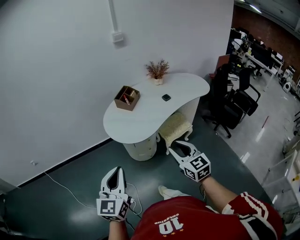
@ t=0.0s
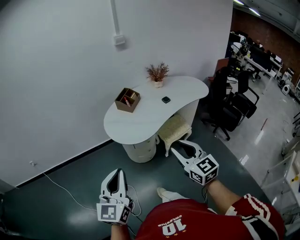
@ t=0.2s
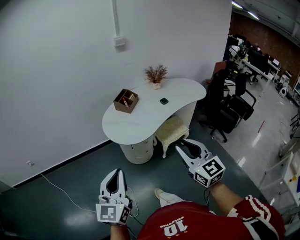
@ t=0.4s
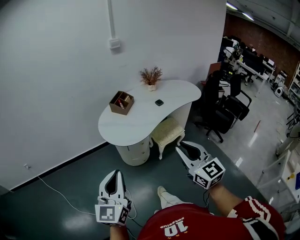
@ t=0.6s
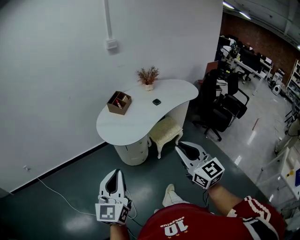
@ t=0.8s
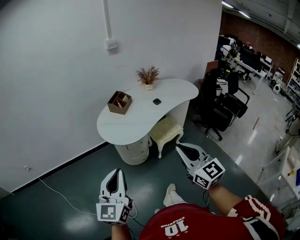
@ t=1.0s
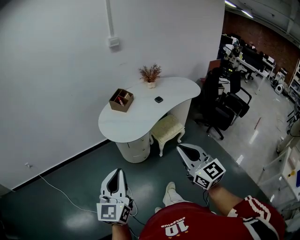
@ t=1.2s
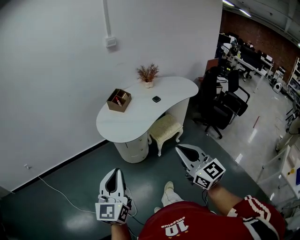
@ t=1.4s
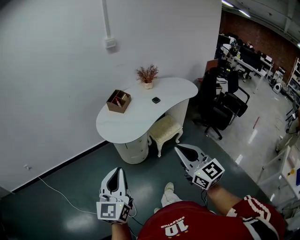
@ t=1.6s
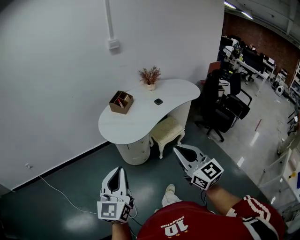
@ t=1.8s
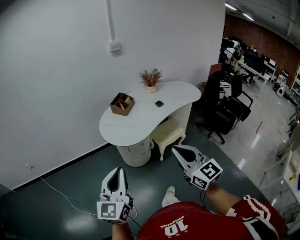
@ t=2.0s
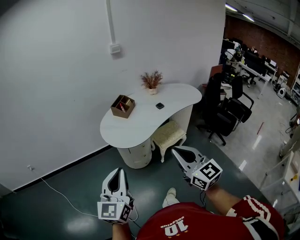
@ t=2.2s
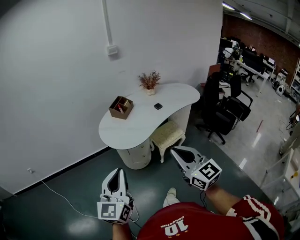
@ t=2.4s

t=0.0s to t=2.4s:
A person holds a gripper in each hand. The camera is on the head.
t=0.0s to t=1.2s: The right gripper goes approximately 15 cm backward and upward; the left gripper goes roughly 5 cm backward.
t=1.2s to t=2.4s: The grippers move only a little.

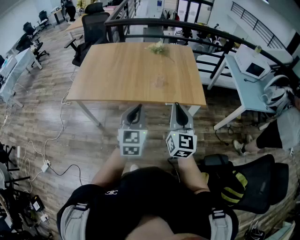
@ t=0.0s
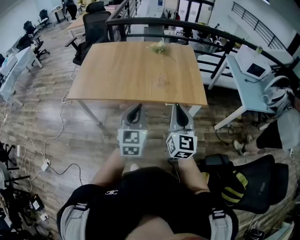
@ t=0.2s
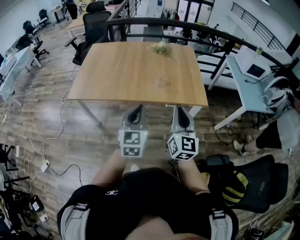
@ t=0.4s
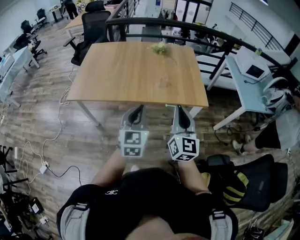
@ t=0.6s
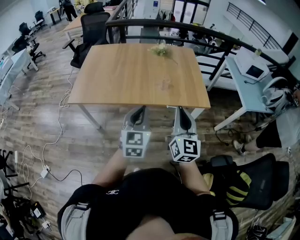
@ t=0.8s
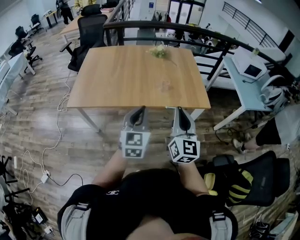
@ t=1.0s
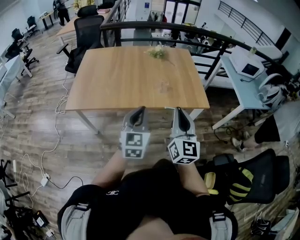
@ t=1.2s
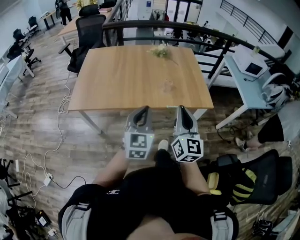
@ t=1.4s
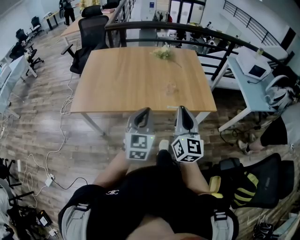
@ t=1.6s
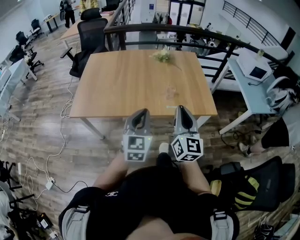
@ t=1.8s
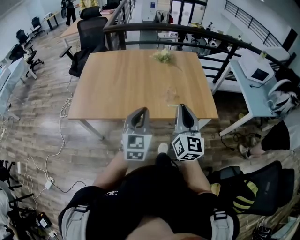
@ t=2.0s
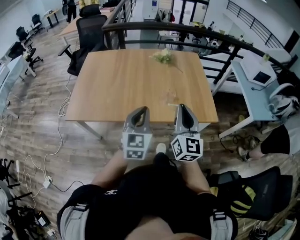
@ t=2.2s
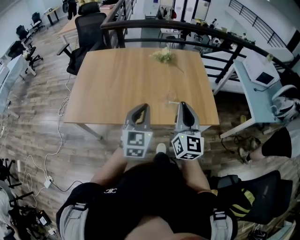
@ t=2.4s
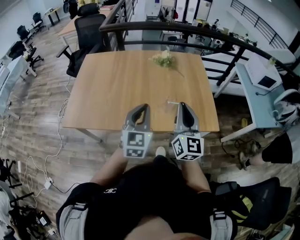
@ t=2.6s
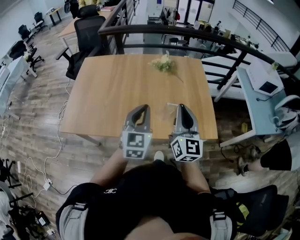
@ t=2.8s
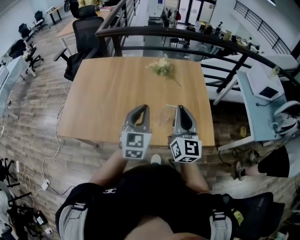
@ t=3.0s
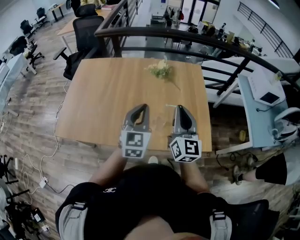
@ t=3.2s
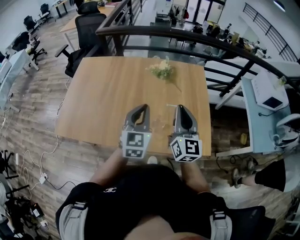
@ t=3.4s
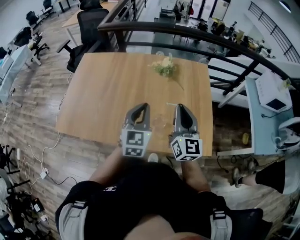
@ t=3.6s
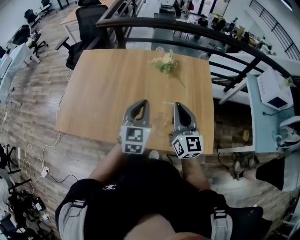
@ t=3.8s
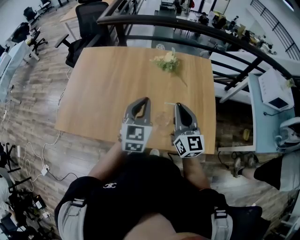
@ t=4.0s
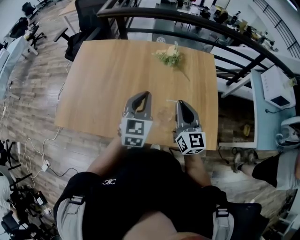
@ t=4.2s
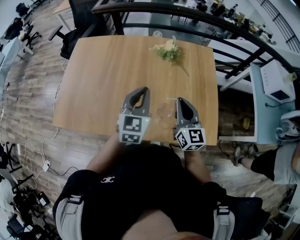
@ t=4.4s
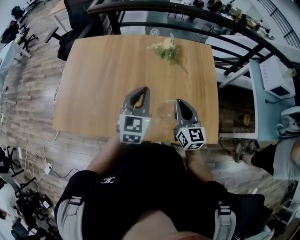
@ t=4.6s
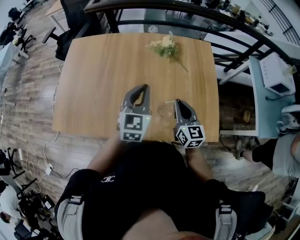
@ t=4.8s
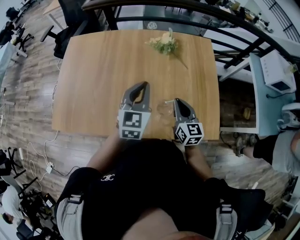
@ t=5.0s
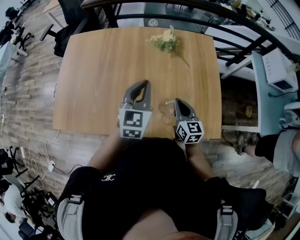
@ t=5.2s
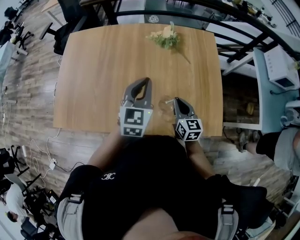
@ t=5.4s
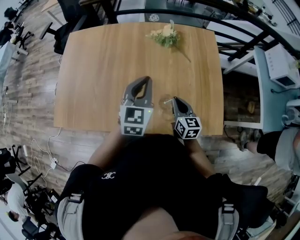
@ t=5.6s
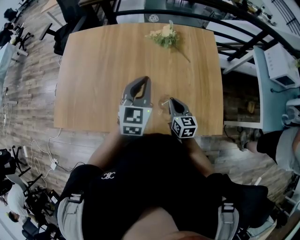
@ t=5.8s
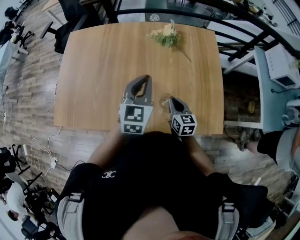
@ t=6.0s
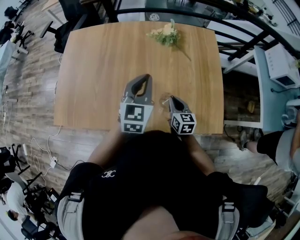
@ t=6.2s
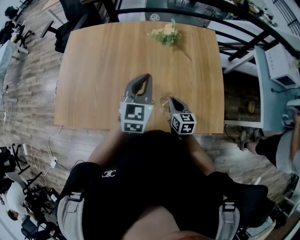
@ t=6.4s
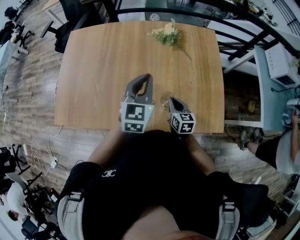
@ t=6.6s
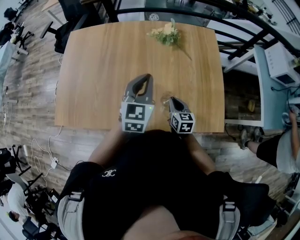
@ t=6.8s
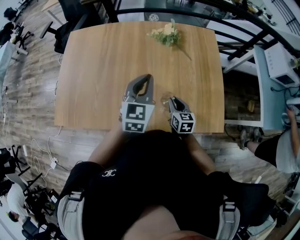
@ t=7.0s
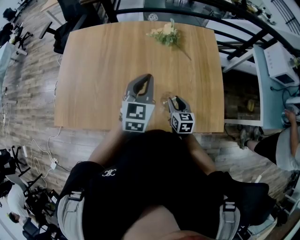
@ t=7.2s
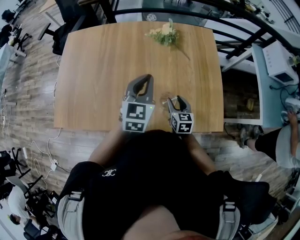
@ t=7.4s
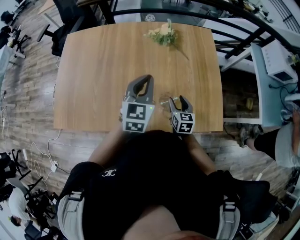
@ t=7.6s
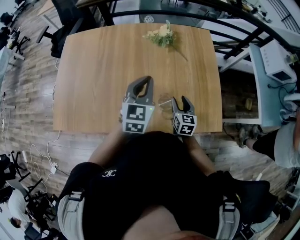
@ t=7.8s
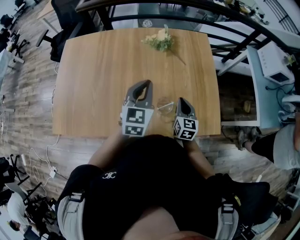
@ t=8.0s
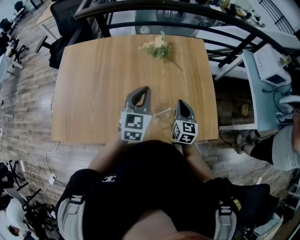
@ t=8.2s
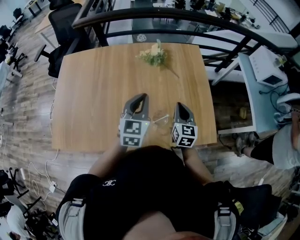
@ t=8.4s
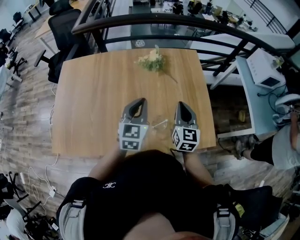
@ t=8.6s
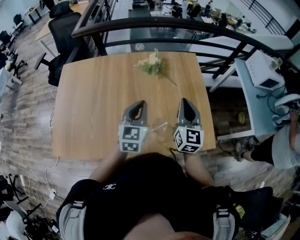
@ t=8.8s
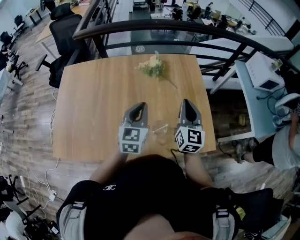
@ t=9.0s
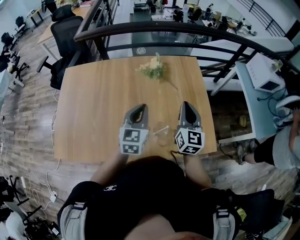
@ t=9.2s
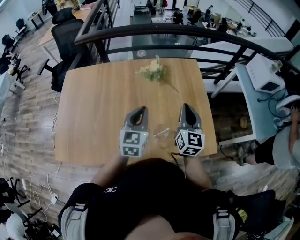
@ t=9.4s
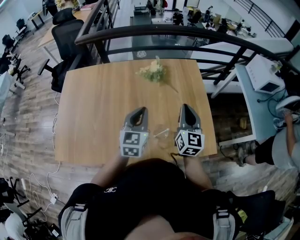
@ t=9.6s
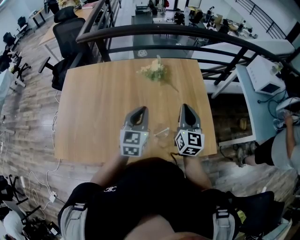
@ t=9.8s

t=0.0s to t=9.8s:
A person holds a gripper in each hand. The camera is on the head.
t=0.0s to t=1.4s: Both grippers travel together to the left, some 10 cm.
t=1.4s to t=2.8s: The two grippers go roughly 25 cm forward.
t=2.8s to t=4.2s: The right gripper heads forward and downward, covering approximately 15 cm. The left gripper goes approximately 15 cm forward.
t=4.2s to t=5.6s: The left gripper moves approximately 5 cm. The right gripper moves downward, about 15 cm, and rotates some 30 degrees.
t=5.6s to t=7.0s: The right gripper heads downward, covering approximately 5 cm.
t=7.0s to t=8.4s: The right gripper travels upward and to the right by some 15 cm, swivels about 20 degrees, and opens, then closes again.
t=8.4s to t=9.8s: The right gripper is displaced upward by approximately 10 cm.

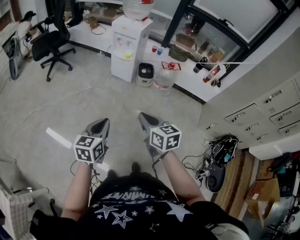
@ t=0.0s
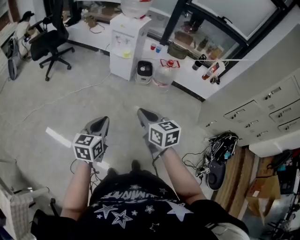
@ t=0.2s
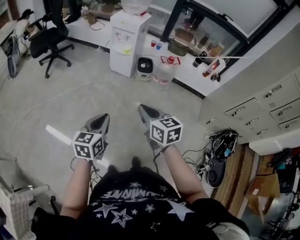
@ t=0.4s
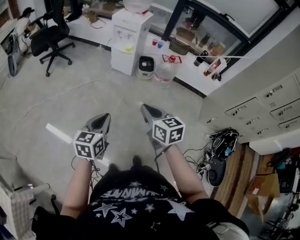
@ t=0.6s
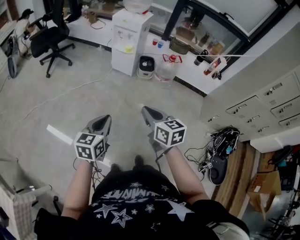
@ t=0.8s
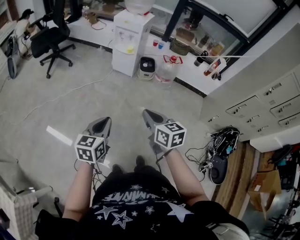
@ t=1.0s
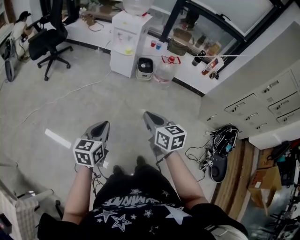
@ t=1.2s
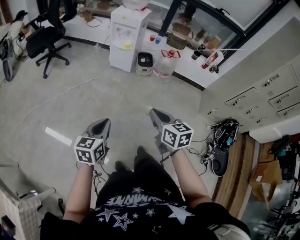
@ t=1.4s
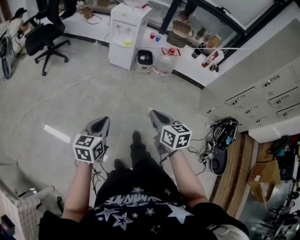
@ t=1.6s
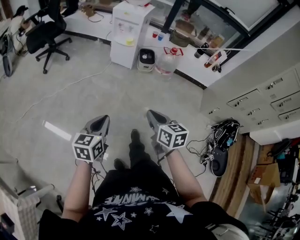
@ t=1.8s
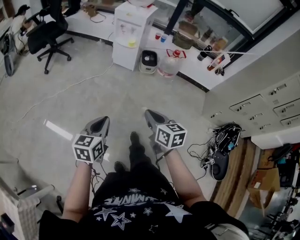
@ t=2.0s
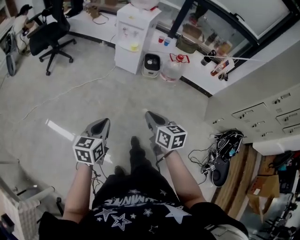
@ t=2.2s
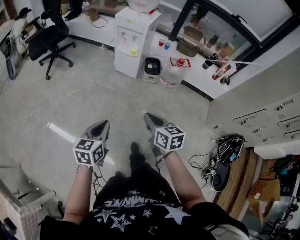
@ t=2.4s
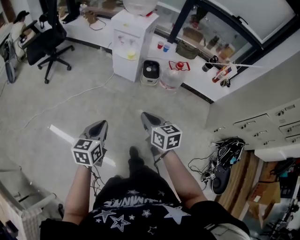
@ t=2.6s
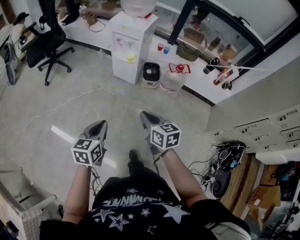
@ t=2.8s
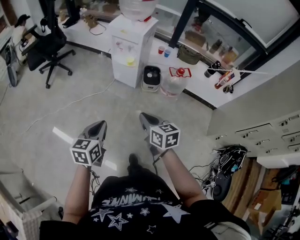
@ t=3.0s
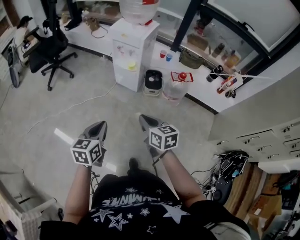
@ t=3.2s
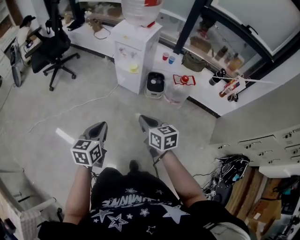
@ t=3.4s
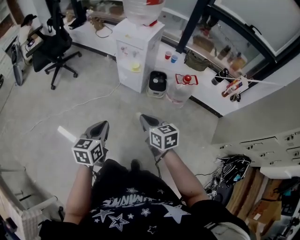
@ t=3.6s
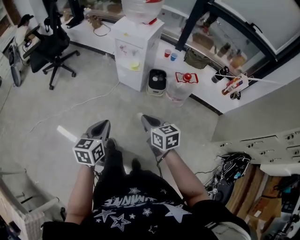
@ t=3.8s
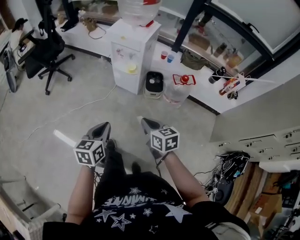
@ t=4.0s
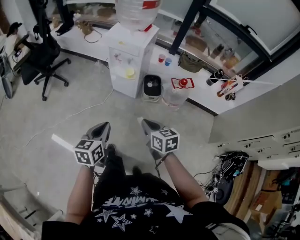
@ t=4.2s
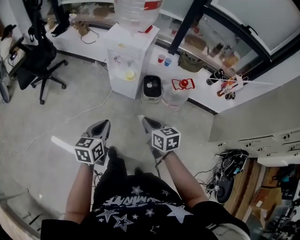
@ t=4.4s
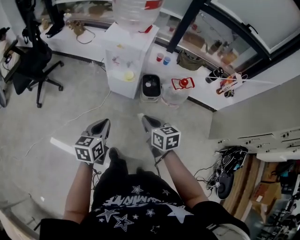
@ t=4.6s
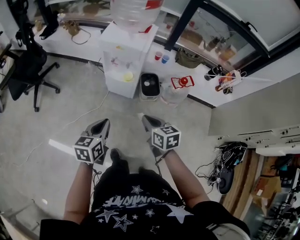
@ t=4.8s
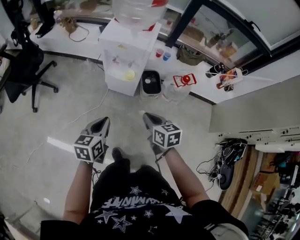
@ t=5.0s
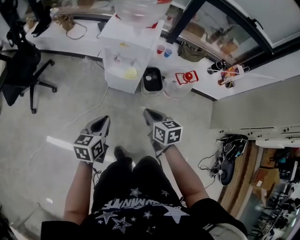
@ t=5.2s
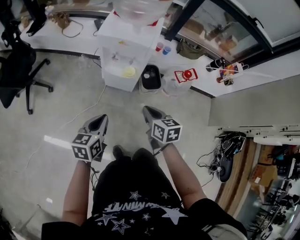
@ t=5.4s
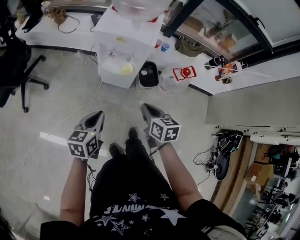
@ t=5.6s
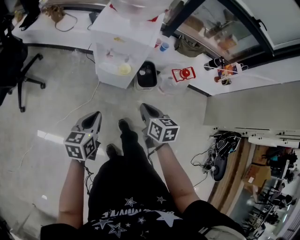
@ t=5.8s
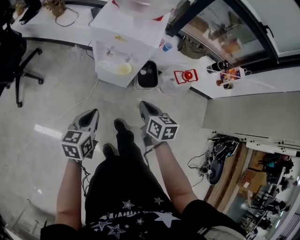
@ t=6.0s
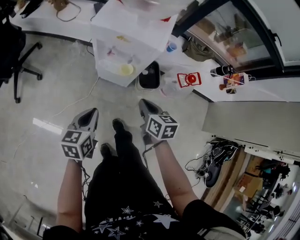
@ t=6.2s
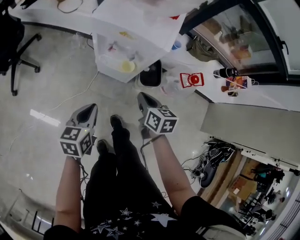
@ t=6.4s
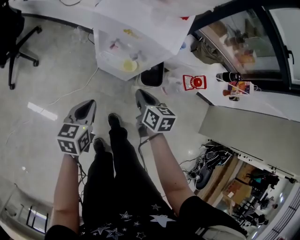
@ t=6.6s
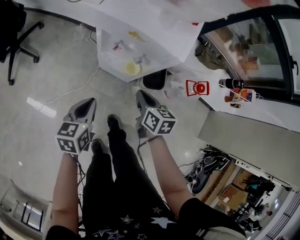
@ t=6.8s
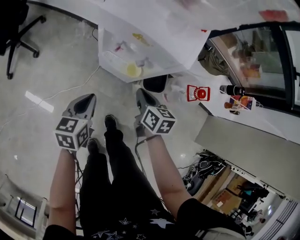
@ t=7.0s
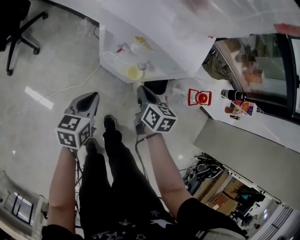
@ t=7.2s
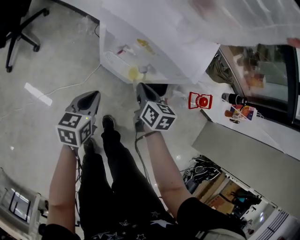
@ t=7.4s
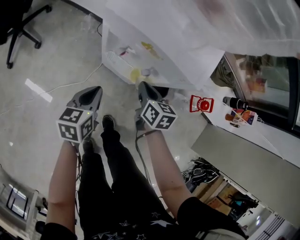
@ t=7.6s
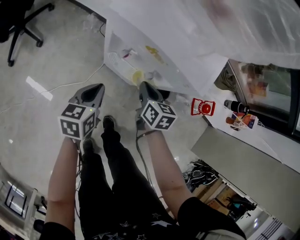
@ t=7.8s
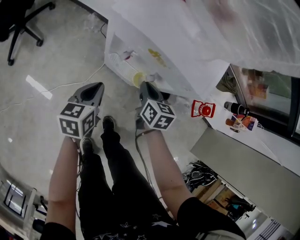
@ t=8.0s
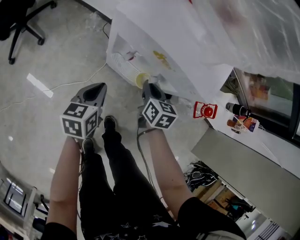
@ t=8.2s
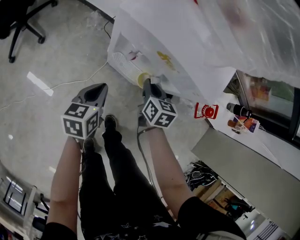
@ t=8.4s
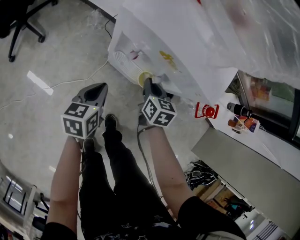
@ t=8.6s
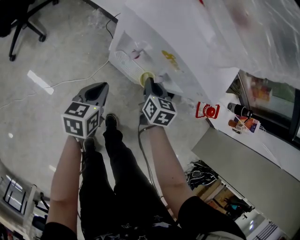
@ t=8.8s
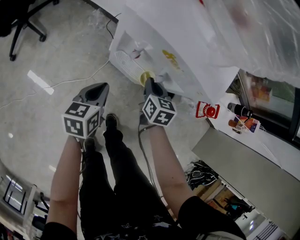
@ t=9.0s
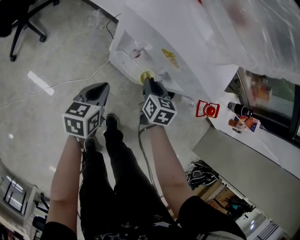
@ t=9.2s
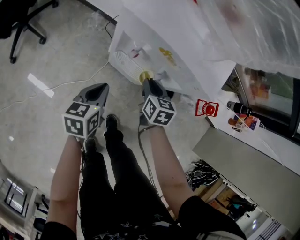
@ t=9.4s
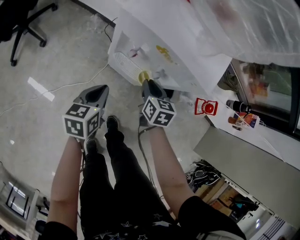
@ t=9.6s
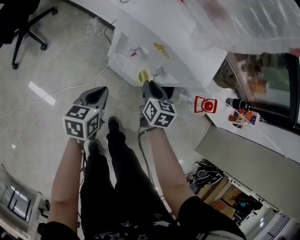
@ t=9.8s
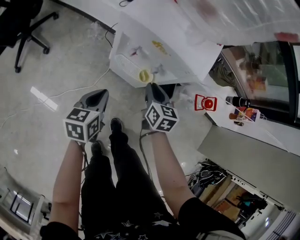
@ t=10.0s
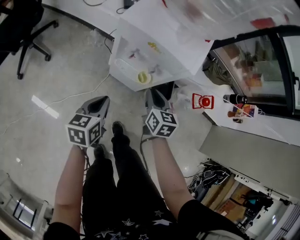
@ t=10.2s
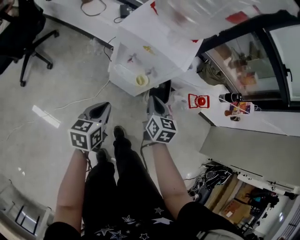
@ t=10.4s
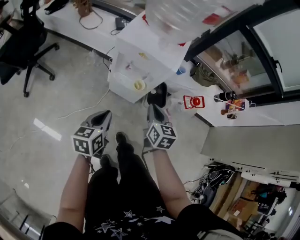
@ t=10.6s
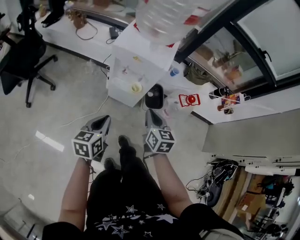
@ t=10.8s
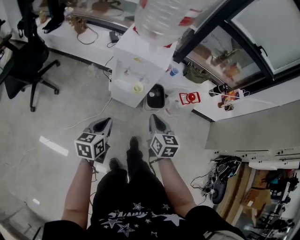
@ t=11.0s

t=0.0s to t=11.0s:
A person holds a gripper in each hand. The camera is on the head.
t=0.0s to t=1.6s: The left gripper goes roughly 10 cm to the left and backward, while the right gripper moves backward, approximately 5 cm.
t=1.6s to t=3.2s: Both grippers move forward, roughly 30 cm.
t=3.2s to t=4.8s: The two grippers go approximately 25 cm forward.
t=4.8s to t=6.2s: The grippers both shift forward and downward by approximately 20 cm.
t=6.2s to t=7.8s: Both grippers move forward and downward, approximately 20 cm.
t=7.8s to t=9.4s: The grippers stay close to where they were, moving slightly.
t=9.4s to t=11.0s: Both grippers move upward and backward, roughly 35 cm.
